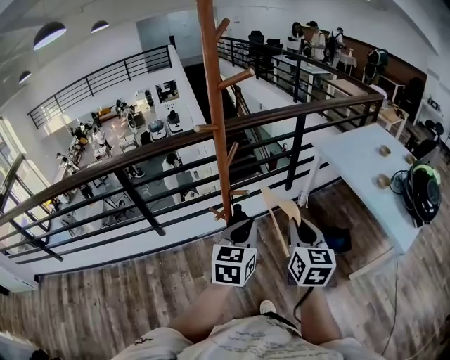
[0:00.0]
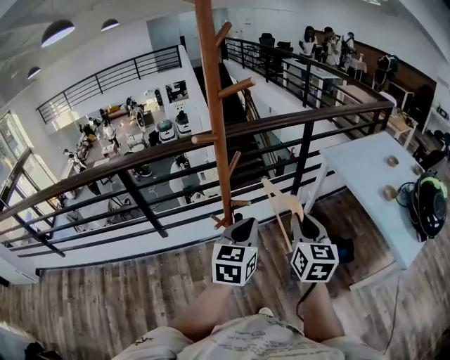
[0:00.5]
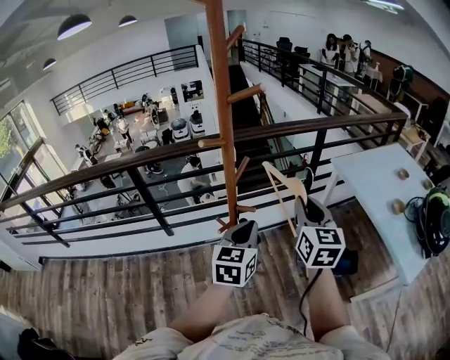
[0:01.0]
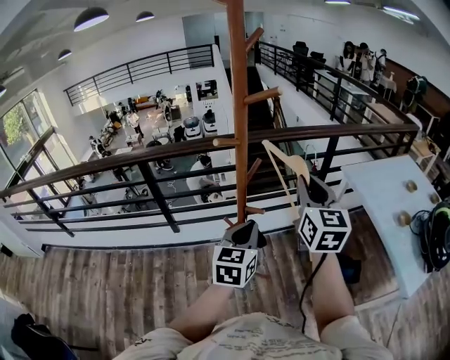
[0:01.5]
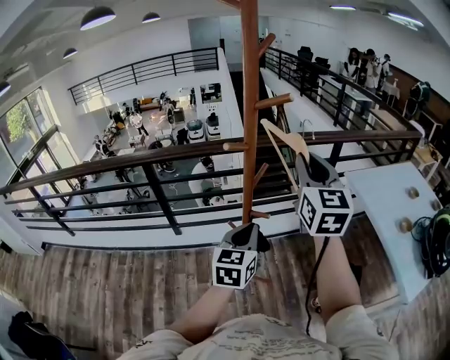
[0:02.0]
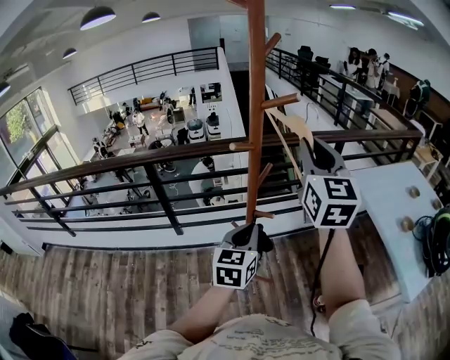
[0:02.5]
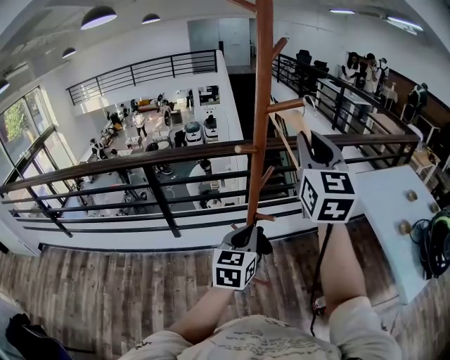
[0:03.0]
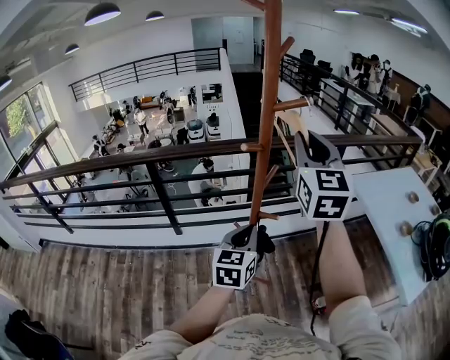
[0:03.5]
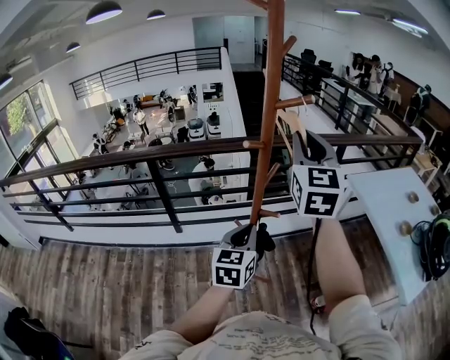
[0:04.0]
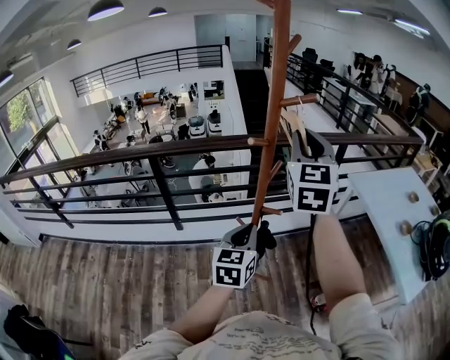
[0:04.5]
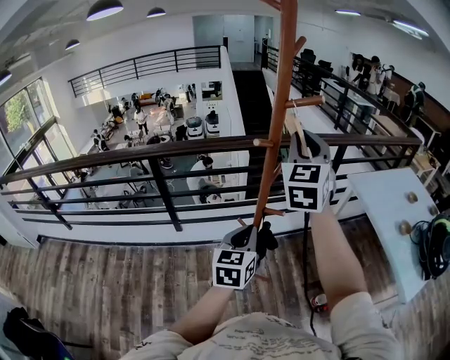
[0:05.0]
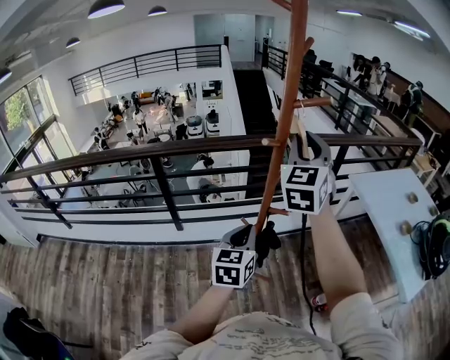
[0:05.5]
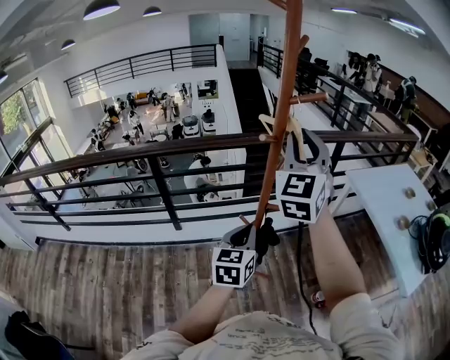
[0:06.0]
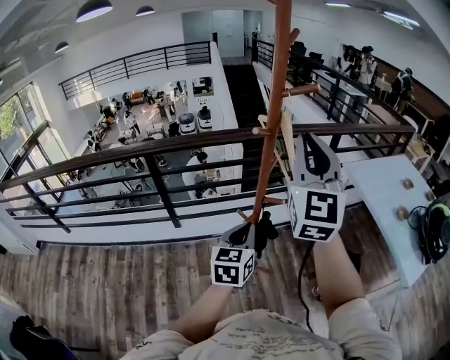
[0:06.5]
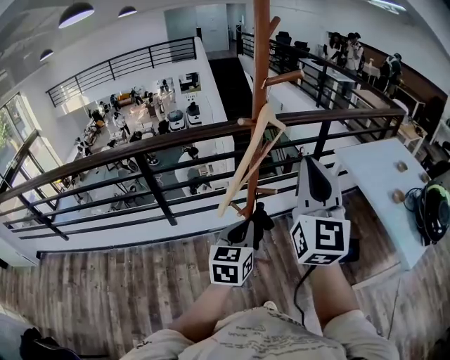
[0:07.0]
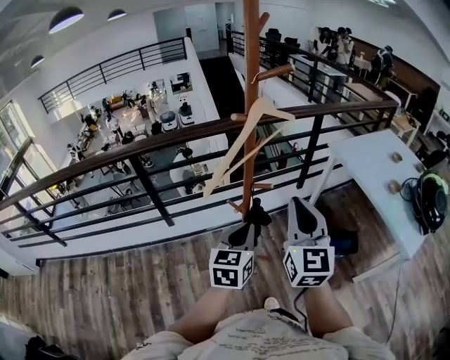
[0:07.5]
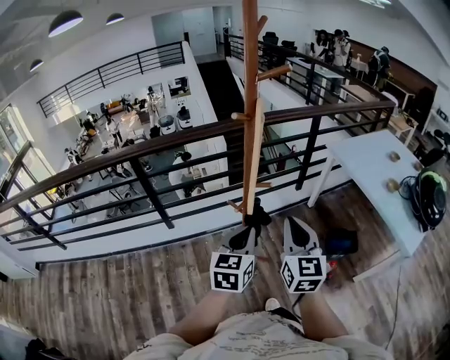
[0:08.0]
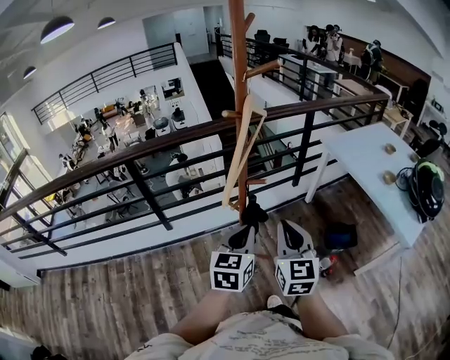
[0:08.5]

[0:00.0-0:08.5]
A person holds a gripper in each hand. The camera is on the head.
0:00.0 to 0:02.0: The left gripper shifts some 5 cm forward, while the right gripper moves upward and forward, roughly 25 cm, and rotates some 30 degrees.
0:02.0 to 0:04.0: The right gripper travels to the left and upward by some 10 cm.
0:04.0 to 0:06.5: The right gripper heads backward, covering some 10 cm.
0:06.5 to 0:08.5: The right gripper heads downward and backward, covering roughly 30 cm, and changes its angle by about 30 degrees; the left gripper travels backward by approximately 5 cm.

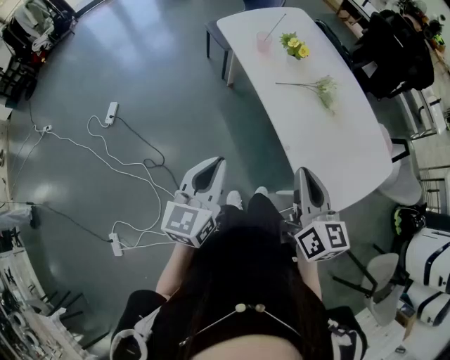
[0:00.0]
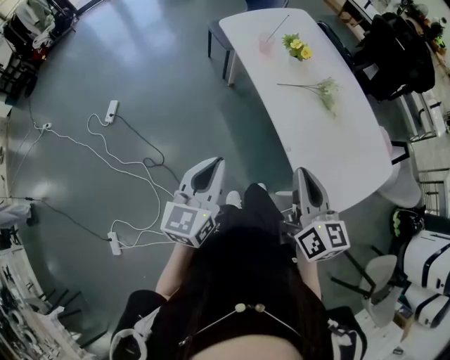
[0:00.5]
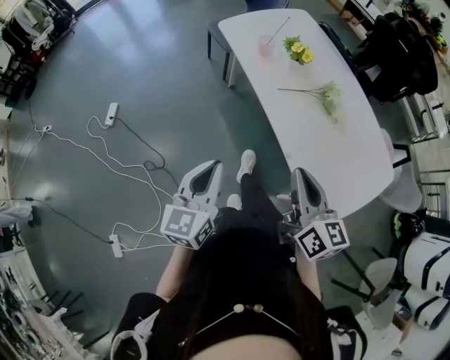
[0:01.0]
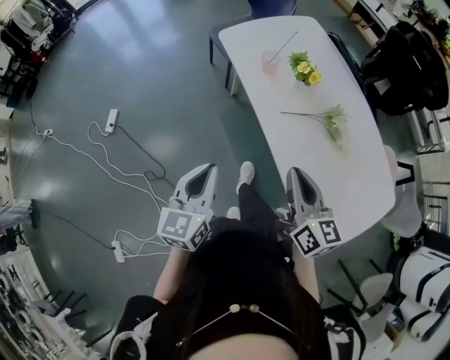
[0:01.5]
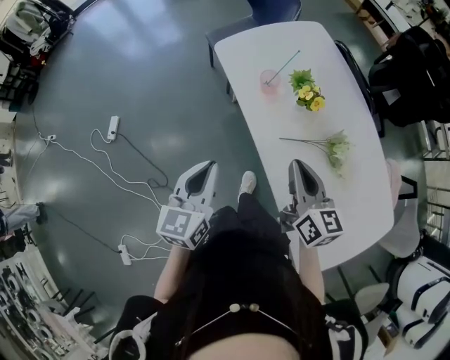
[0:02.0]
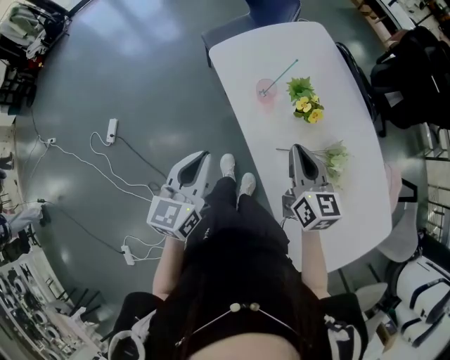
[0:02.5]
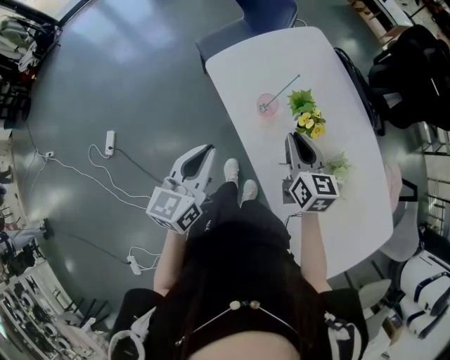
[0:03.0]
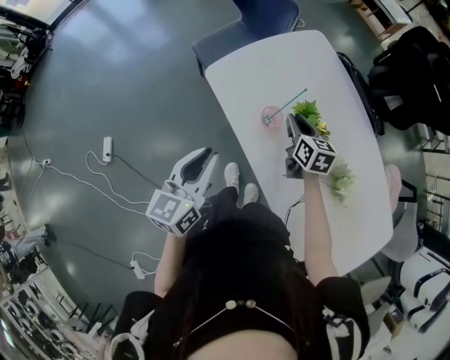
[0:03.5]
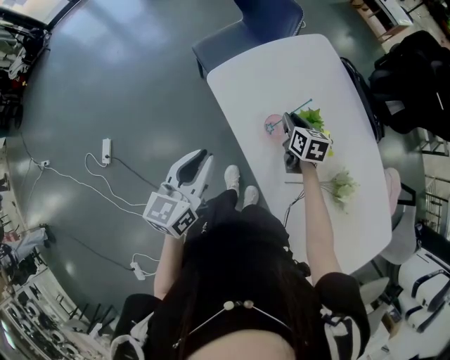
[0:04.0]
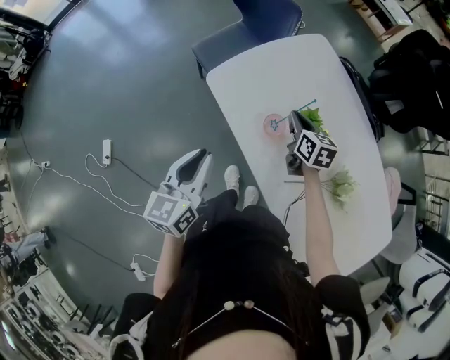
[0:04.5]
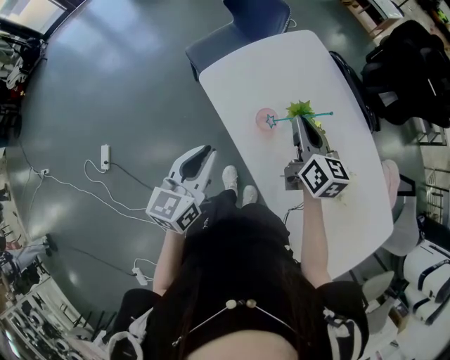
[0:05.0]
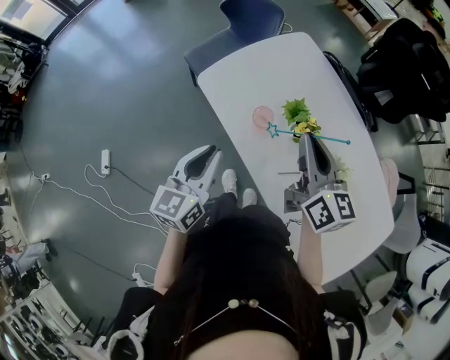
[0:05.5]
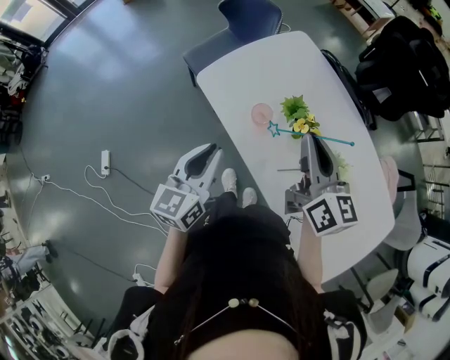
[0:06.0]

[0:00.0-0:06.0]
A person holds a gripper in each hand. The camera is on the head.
0:00.0 to 0:02.0: The two grippers go some 30 cm forward.
0:02.0 to 0:04.0: The left gripper travels forward by some 25 cm; the right gripper is displaced forward and downward by about 40 cm, and swivels about 30 degrees.
0:04.0 to 0:06.0: The left gripper shifts by some 5 cm. The right gripper heads upward and backward, covering roughly 30 cm, and angles its fingers upward, by approximately 30 degrees.

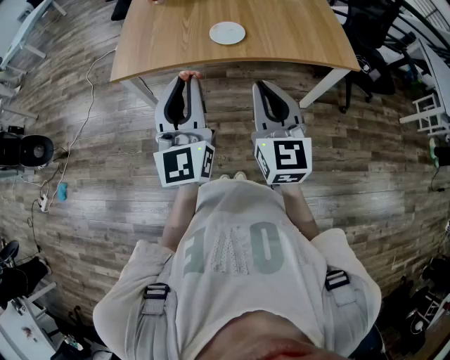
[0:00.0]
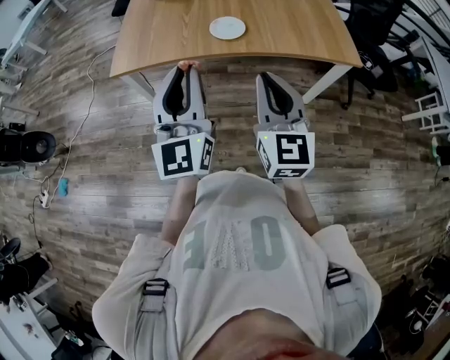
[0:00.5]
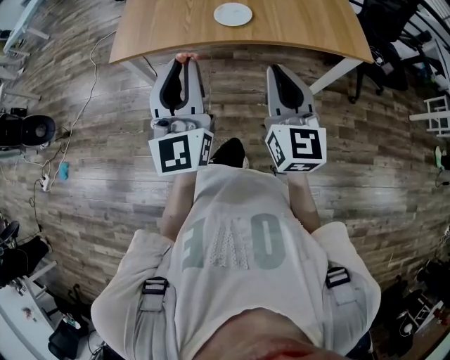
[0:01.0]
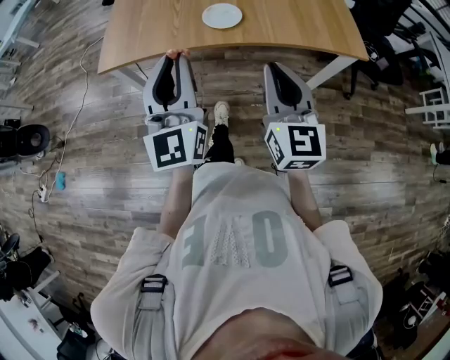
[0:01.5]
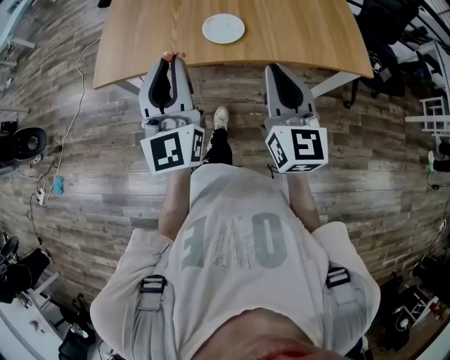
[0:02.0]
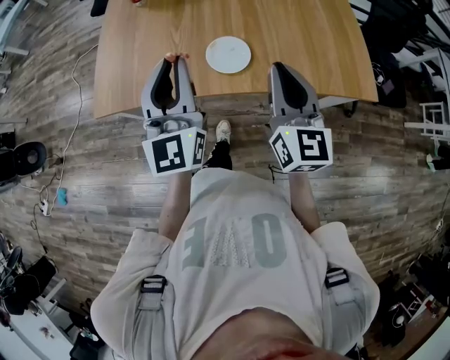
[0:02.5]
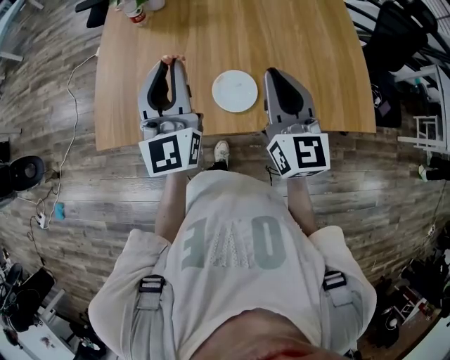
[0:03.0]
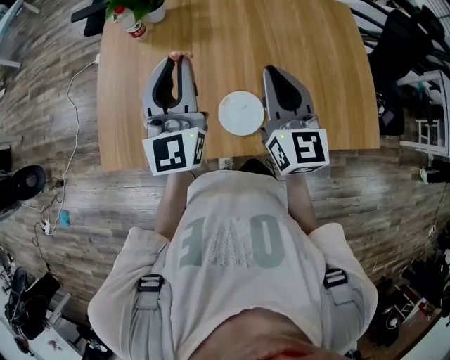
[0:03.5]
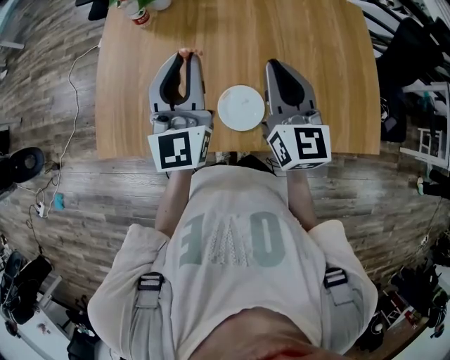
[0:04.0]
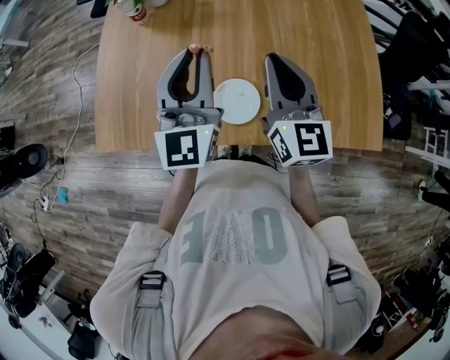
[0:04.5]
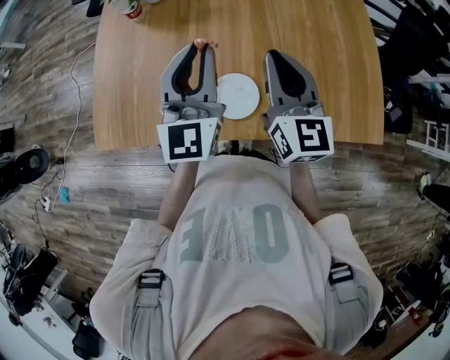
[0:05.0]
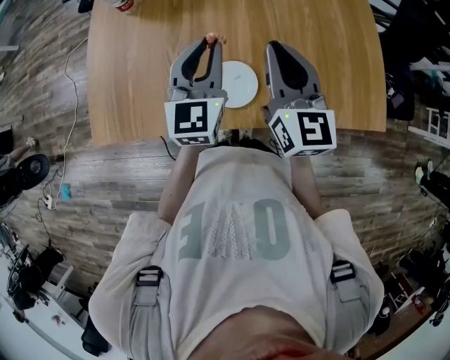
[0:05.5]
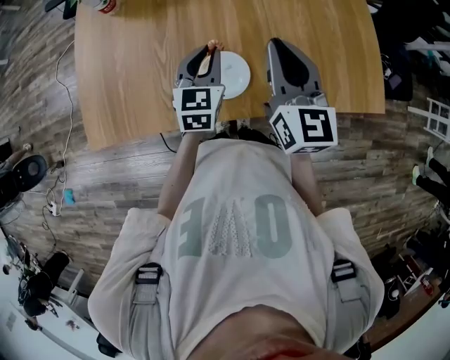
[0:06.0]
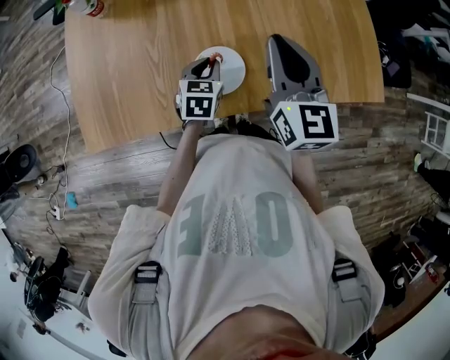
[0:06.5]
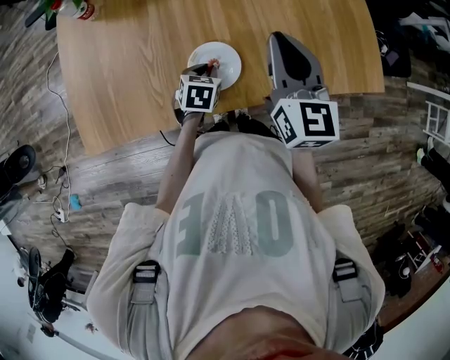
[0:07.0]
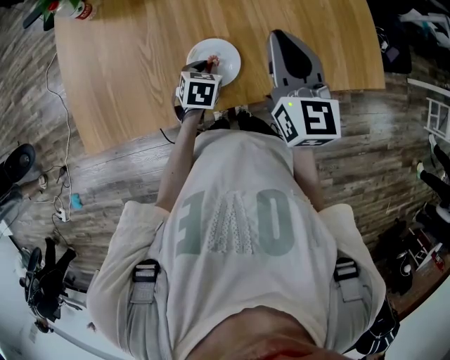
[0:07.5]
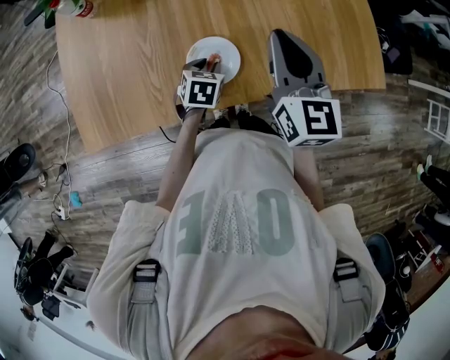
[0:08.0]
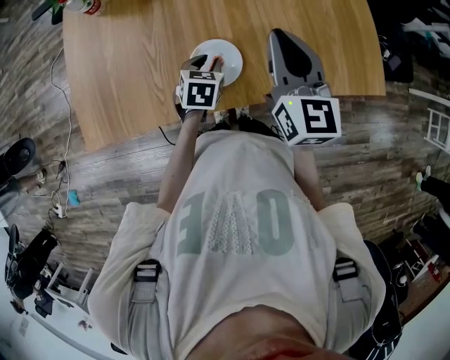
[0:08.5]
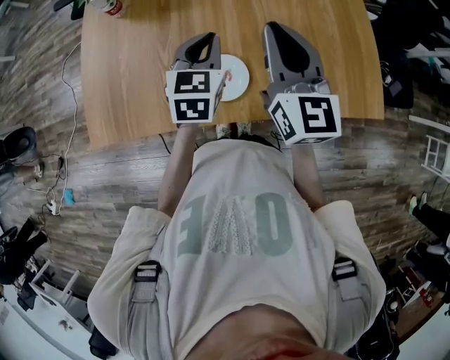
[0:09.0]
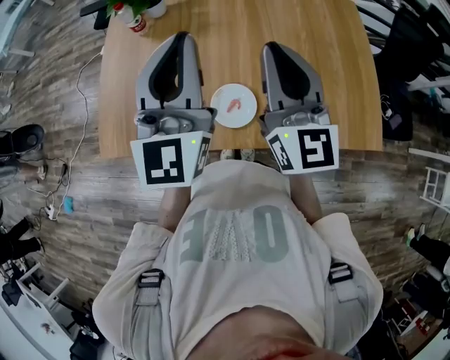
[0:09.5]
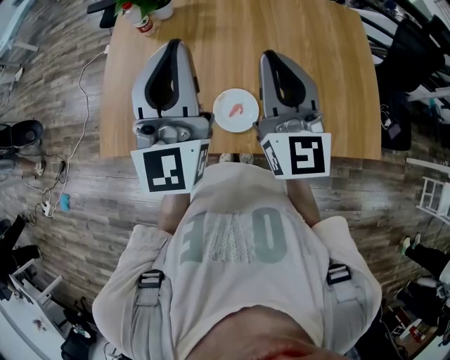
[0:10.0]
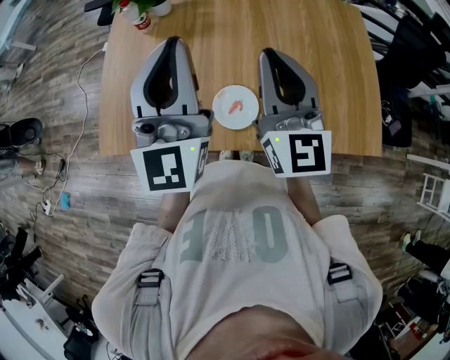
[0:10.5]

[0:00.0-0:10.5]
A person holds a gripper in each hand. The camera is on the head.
0:00.0 to 0:02.0: The right gripper heads forward and to the right, covering some 15 cm, while the left gripper goes approximately 15 cm forward.
0:02.0 to 0:04.0: Both grippers move forward, some 35 cm.
0:04.0 to 0:06.5: The left gripper travels downward and to the right by some 30 cm, and tips its fingers downward by some 50 degrees. Meanwhile the right gripper travels to the right by approximately 10 cm.
0:06.5 to 0:08.5: There are only small adjustments of the grippers.
0:08.5 to 0:10.5: The left gripper moves upward, approximately 40 cm, tilts its fingers some 70 degrees upward, and closes its fingers, while the right gripper heads upward and to the left, covering approximately 15 cm, and turns by roughly 20 degrees.

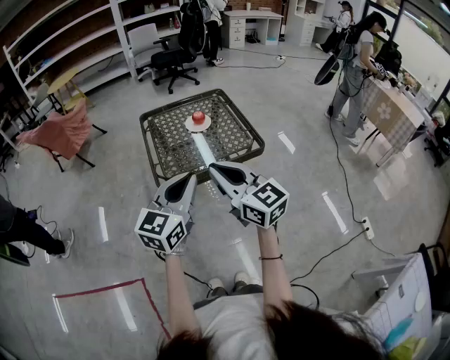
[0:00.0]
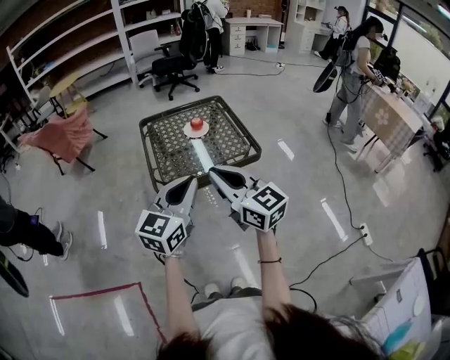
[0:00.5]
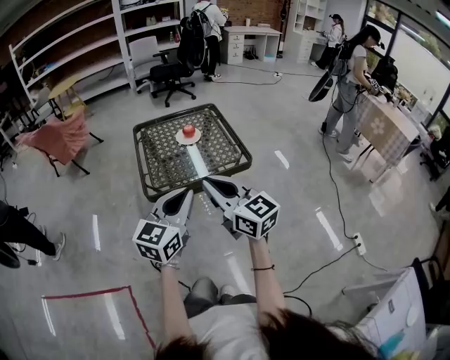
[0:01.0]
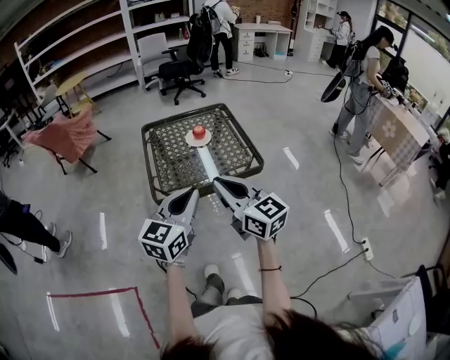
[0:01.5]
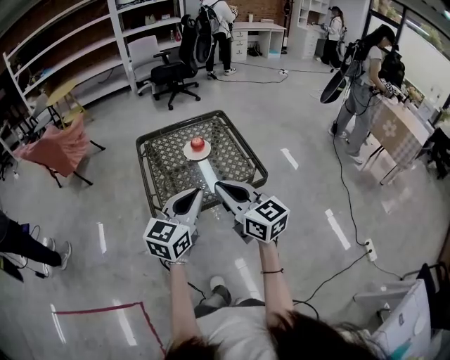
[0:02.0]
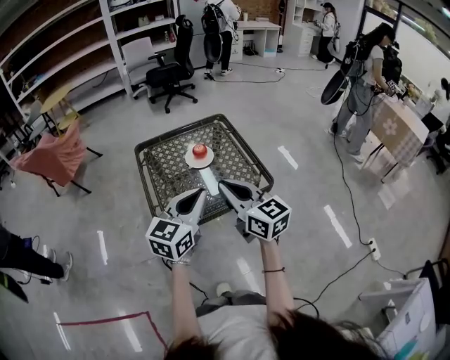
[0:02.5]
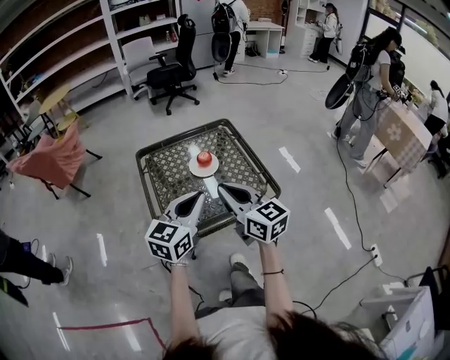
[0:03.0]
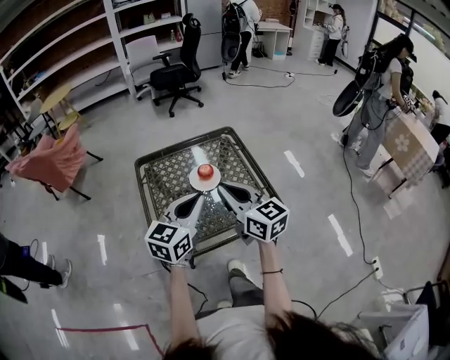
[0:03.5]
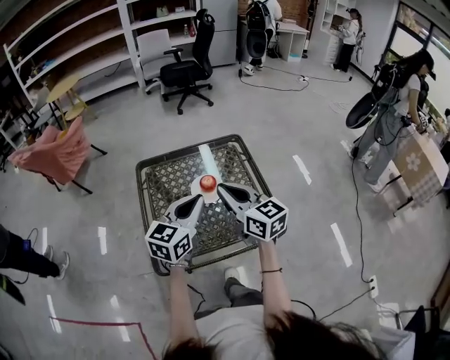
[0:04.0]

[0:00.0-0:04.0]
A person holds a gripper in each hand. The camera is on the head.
0:00.0 to 0:02.0: The grippers both shift forward by roughly 10 cm.
0:02.0 to 0:04.0: The grippers both shift forward by approximately 30 cm.
